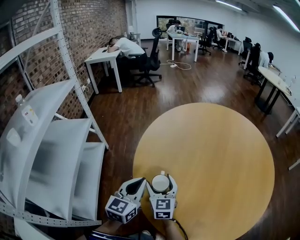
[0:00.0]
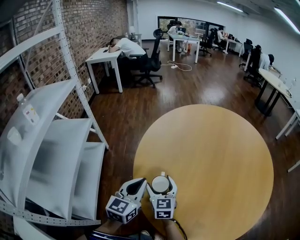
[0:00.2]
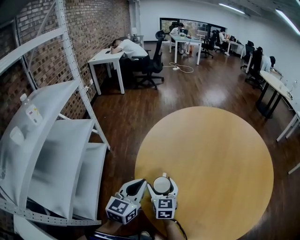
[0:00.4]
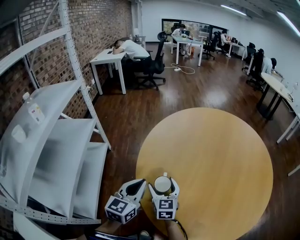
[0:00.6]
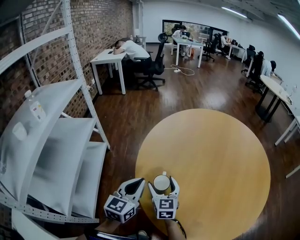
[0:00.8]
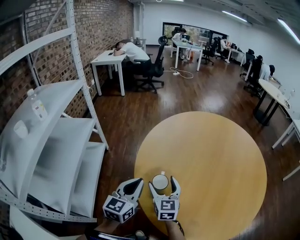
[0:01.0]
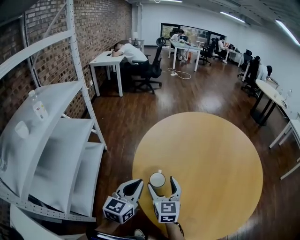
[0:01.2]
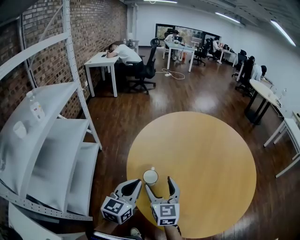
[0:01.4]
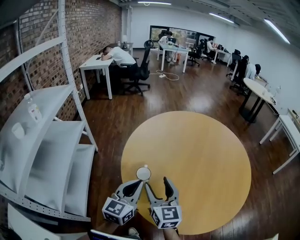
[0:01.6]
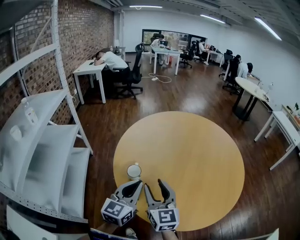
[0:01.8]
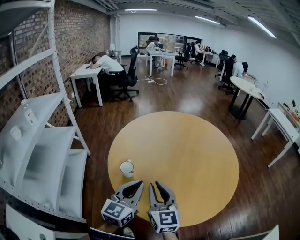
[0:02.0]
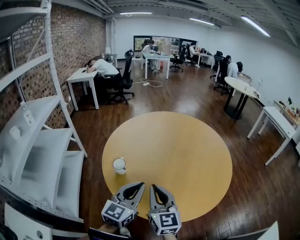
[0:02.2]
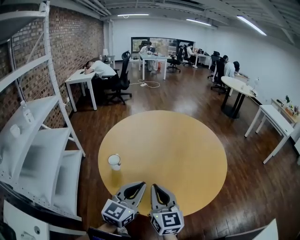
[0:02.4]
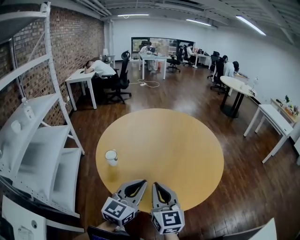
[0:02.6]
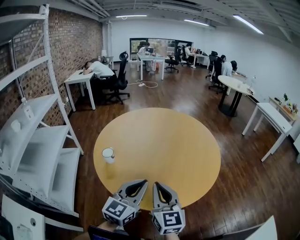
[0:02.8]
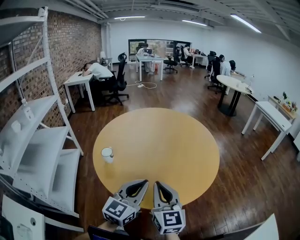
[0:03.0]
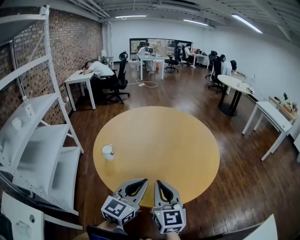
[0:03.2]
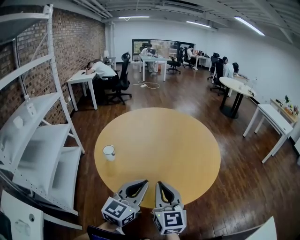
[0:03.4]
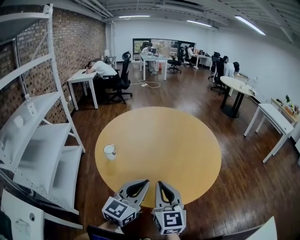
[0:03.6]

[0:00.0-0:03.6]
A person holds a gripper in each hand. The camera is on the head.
0:00.0 to 0:01.8: The right gripper shifts about 25 cm upward, backward and to the right, and closes its fingers. Meanwhile the left gripper shifts roughly 20 cm to the right, backward and upward.
0:01.8 to 0:03.6: Both grippers travel together to the right and backward, approximately 25 cm. The right gripper closes its fingers.

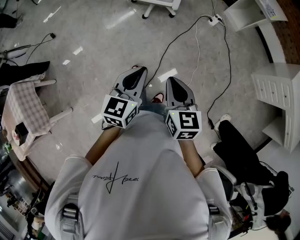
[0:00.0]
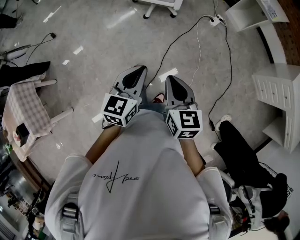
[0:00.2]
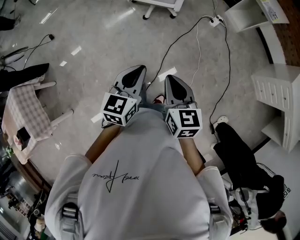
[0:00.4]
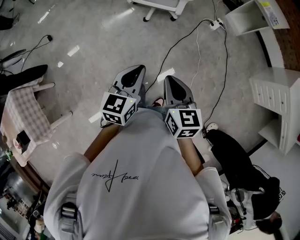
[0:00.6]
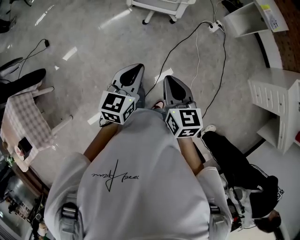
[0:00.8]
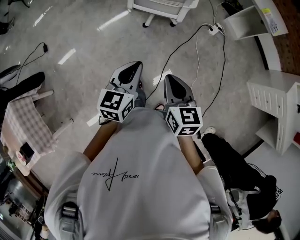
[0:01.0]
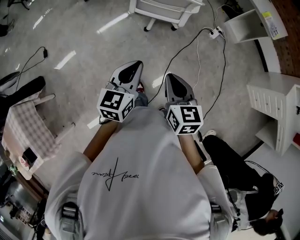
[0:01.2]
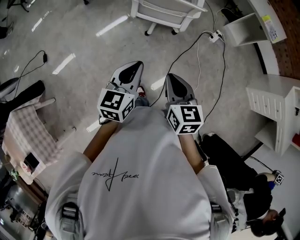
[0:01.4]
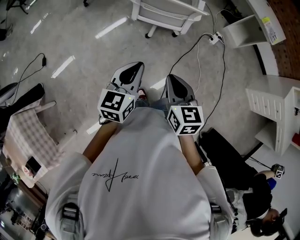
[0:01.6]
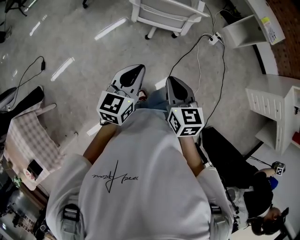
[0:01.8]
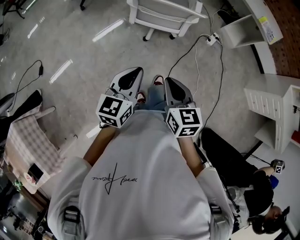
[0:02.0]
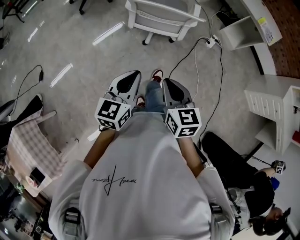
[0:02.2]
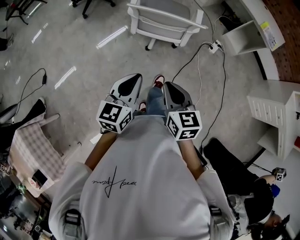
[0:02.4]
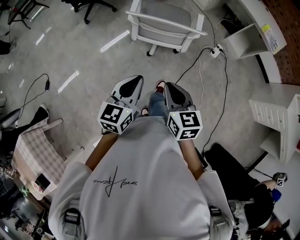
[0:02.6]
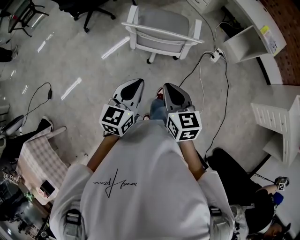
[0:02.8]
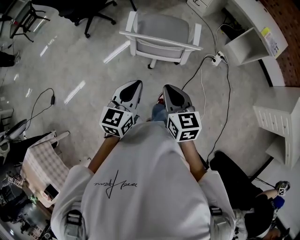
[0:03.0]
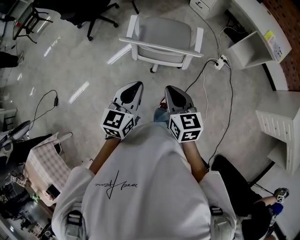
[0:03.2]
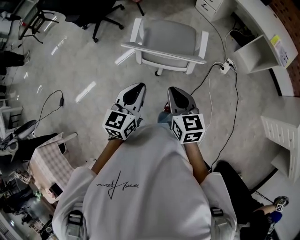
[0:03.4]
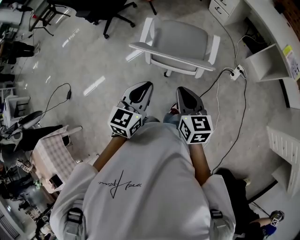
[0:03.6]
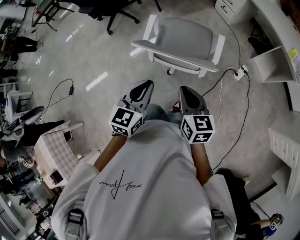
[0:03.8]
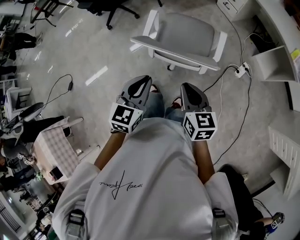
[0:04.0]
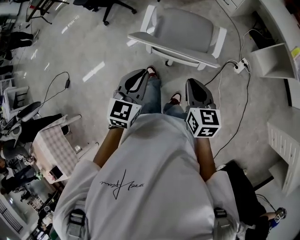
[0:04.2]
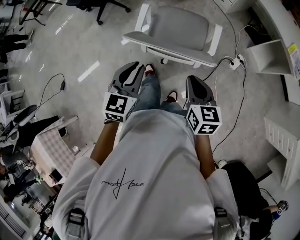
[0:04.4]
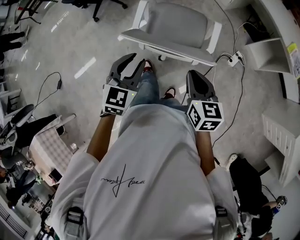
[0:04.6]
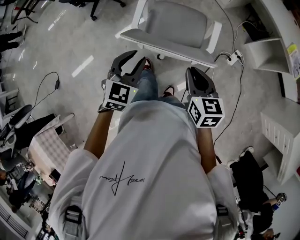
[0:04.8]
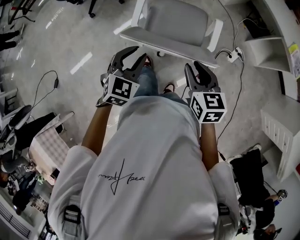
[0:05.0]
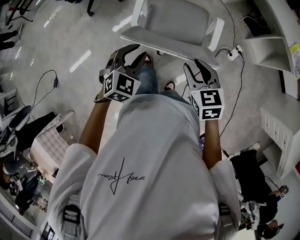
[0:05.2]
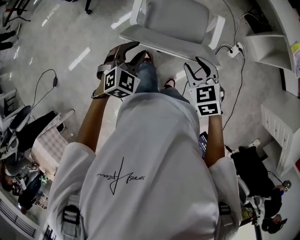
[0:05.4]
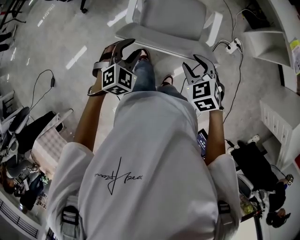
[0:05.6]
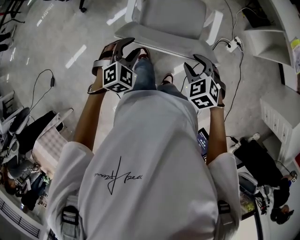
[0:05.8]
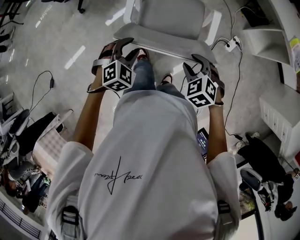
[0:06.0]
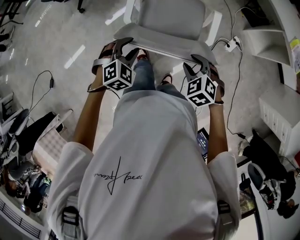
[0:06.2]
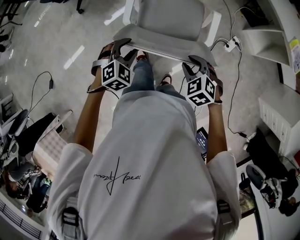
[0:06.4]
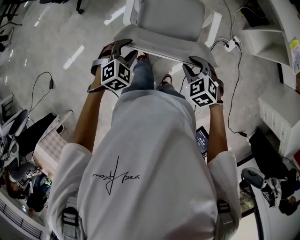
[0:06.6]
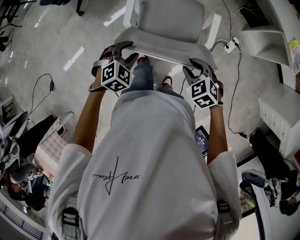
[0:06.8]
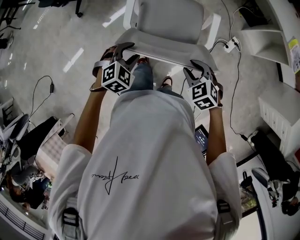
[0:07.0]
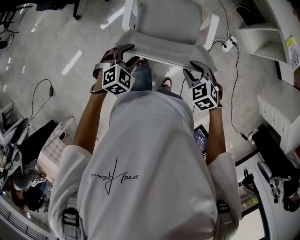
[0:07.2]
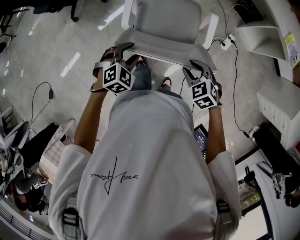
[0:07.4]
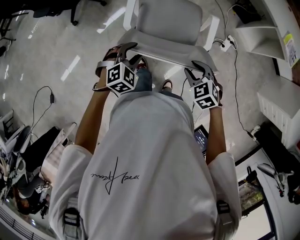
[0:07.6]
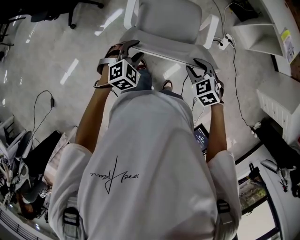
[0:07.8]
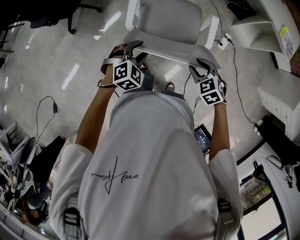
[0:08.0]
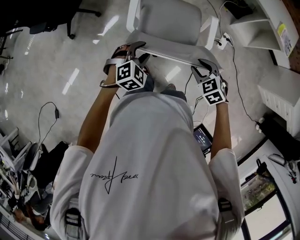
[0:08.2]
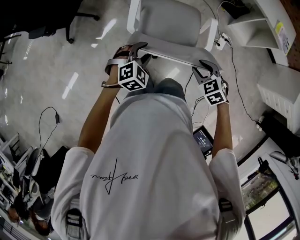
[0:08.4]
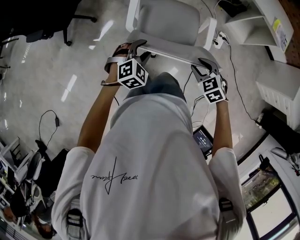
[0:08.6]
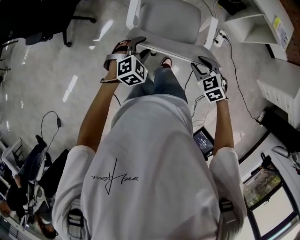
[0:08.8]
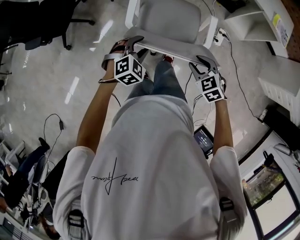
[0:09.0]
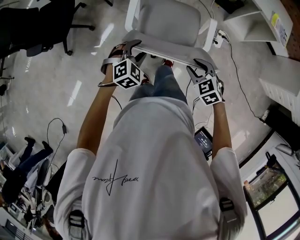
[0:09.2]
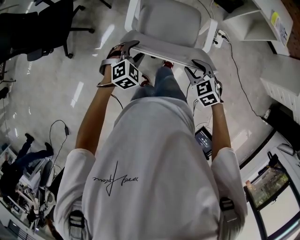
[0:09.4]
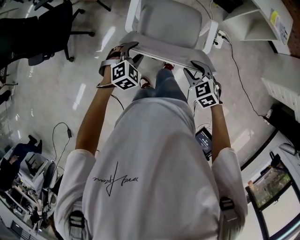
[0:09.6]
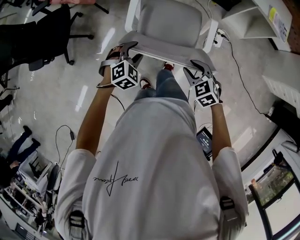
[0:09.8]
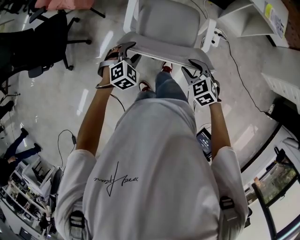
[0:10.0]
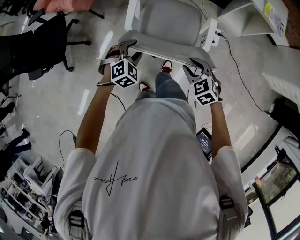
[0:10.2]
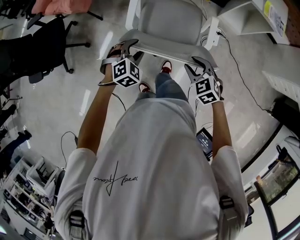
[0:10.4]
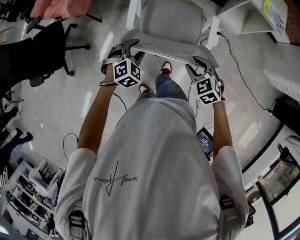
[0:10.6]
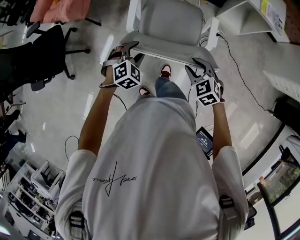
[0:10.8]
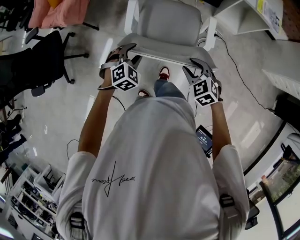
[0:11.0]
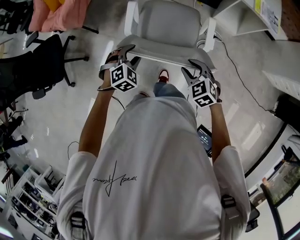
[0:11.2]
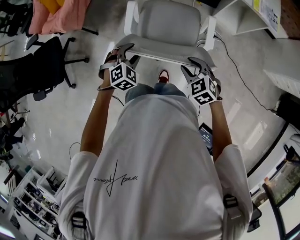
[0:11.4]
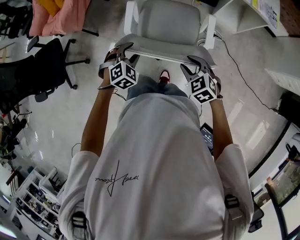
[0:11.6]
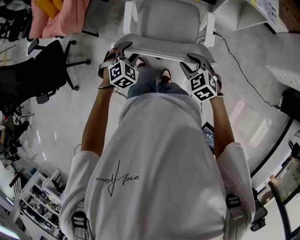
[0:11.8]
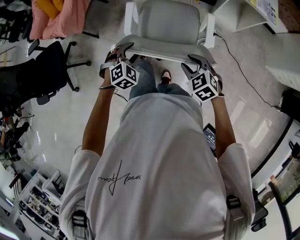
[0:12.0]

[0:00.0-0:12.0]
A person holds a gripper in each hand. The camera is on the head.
0:00.0 to 0:01.6: The two grippers go some 30 cm forward and to the left.
0:01.6 to 0:03.0: The two grippers go about 20 cm forward.
0:03.0 to 0:04.4: The right gripper is displaced forward and to the right by approximately 20 cm. Meanwhile the left gripper shifts about 15 cm forward.
0:04.4 to 0:06.0: The grippers both shift downward and forward by some 15 cm. The right gripper twists about 50 degrees counterclockwise, seen from behind, and opens up; the left gripper turns by some 50 degrees, and opens its fingers.
0:06.0 to 0:07.6: The left gripper ends up roughly 5 cm from where it was.
0:07.6 to 0:09.0: The left gripper shifts approximately 10 cm forward; the right gripper travels forward by some 5 cm.
0:09.0 to 0:10.4: Both grippers move forward and to the right, approximately 15 cm.
0:10.4 to 0:12.0: The two grippers go approximately 10 cm to the right and forward.

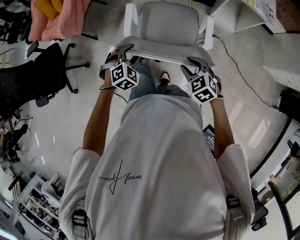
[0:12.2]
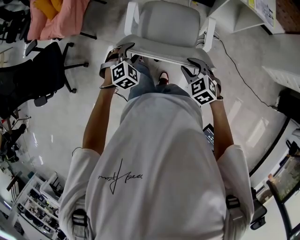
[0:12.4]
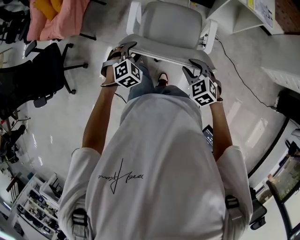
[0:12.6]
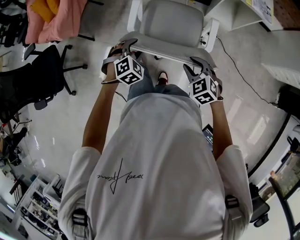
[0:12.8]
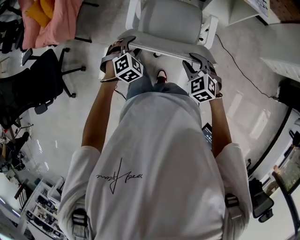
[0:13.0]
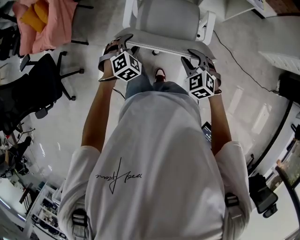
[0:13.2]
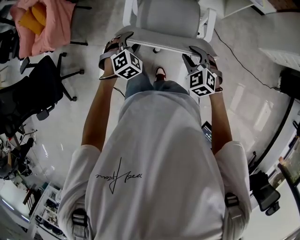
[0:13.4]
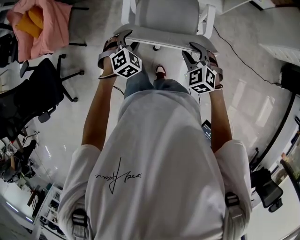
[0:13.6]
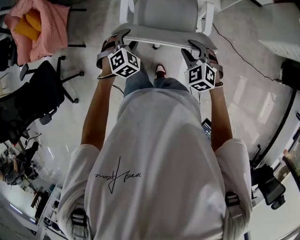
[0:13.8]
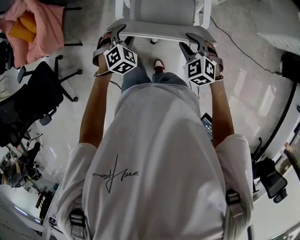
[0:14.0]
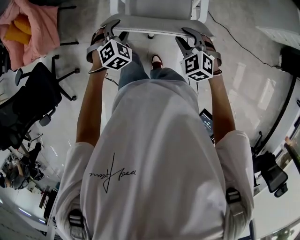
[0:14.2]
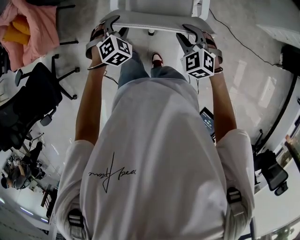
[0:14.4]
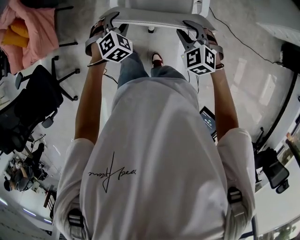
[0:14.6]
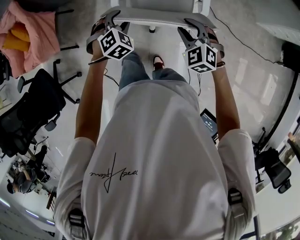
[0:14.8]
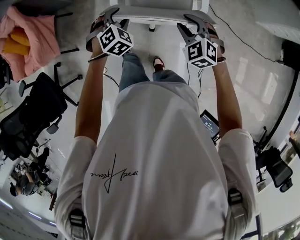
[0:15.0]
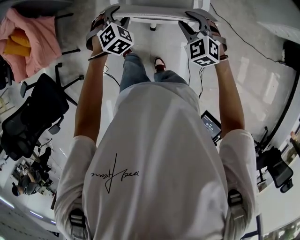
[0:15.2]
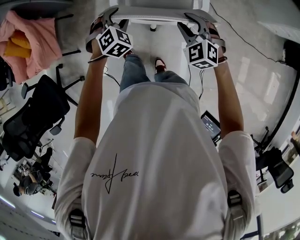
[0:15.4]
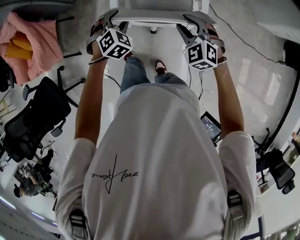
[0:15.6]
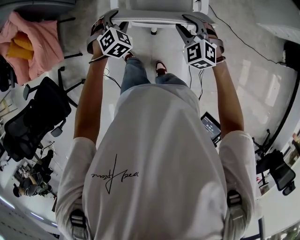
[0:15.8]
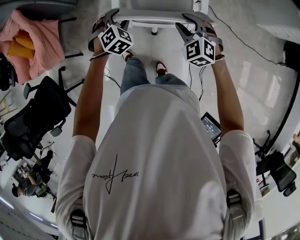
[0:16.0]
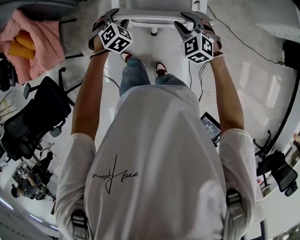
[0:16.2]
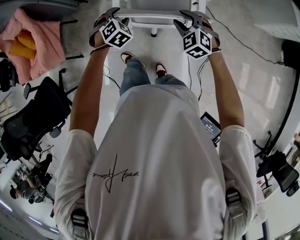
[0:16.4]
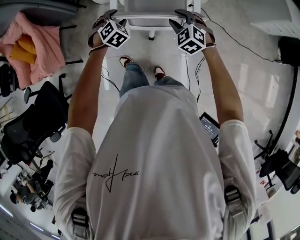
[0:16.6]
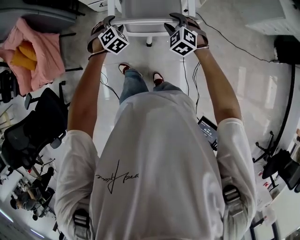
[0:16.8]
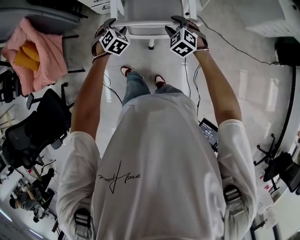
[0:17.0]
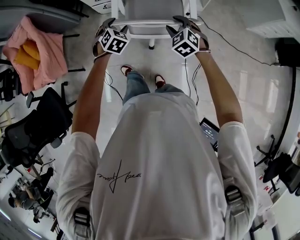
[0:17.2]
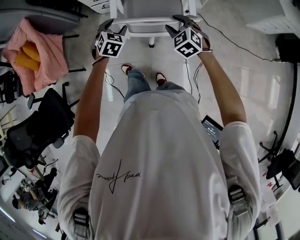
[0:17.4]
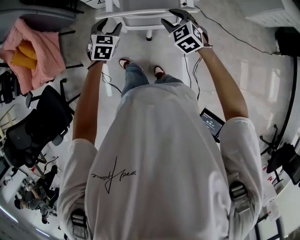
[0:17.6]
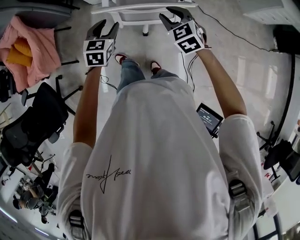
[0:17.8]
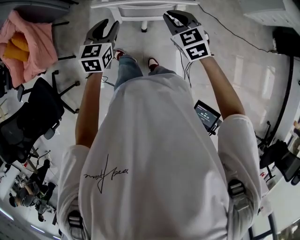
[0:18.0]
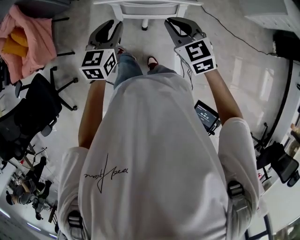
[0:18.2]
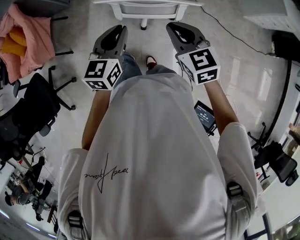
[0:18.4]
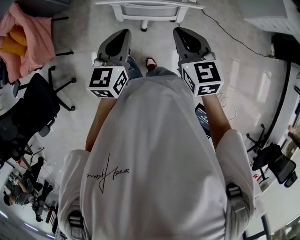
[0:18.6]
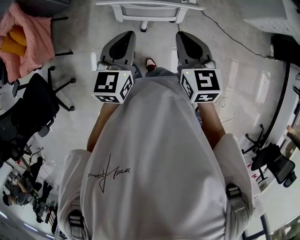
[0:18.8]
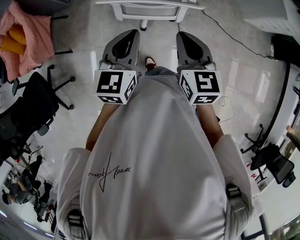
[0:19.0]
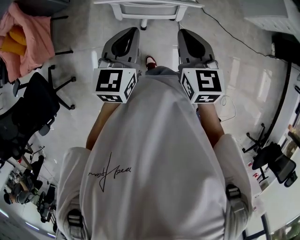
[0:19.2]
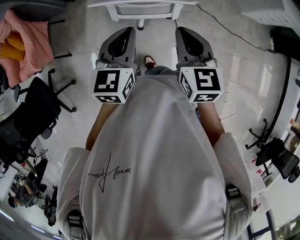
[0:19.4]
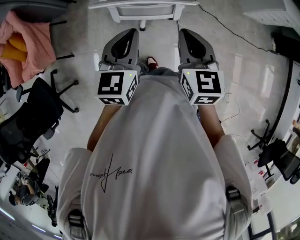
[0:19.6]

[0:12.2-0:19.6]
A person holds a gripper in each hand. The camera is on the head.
0:12.2 to 0:13.6: The left gripper shifts some 10 cm to the right and forward, while the right gripper heads to the right, covering some 10 cm.
0:13.6 to 0:15.2: The two grippers go about 15 cm forward.
0:15.2 to 0:16.6: Both grippers stay put.
0:16.6 to 0:18.2: The two grippers go approximately 15 cm backward and upward. The left gripper twists some 50 degrees counterclockwise, seen from behind, and closes, while the right gripper swivels some 30 degrees, and closes up.
0:18.2 to 0:19.6: The right gripper moves upward and to the right, some 10 cm, and rotates roughly 30 degrees. The left gripper heads to the right and upward, covering approximately 10 cm, and closes.
